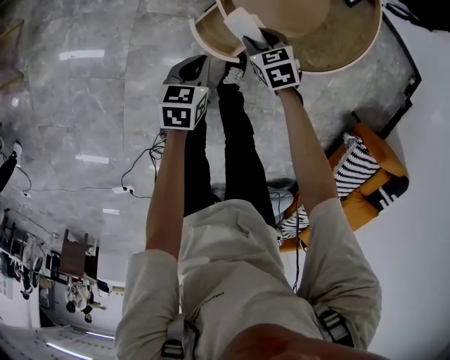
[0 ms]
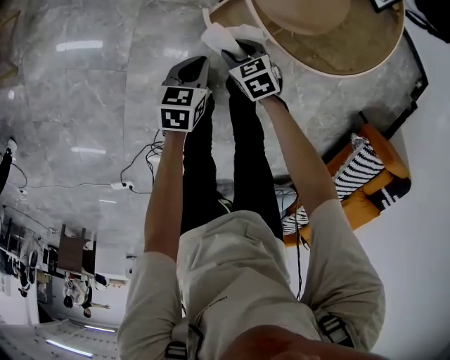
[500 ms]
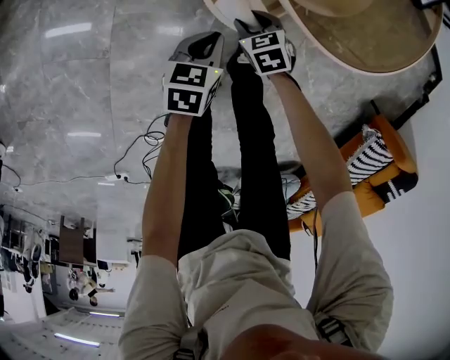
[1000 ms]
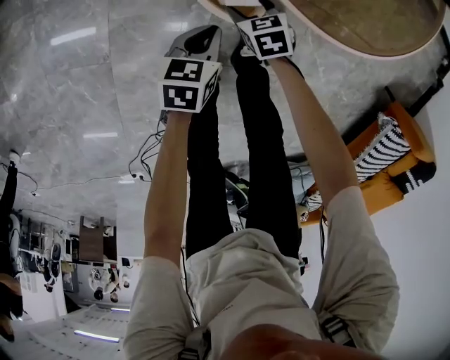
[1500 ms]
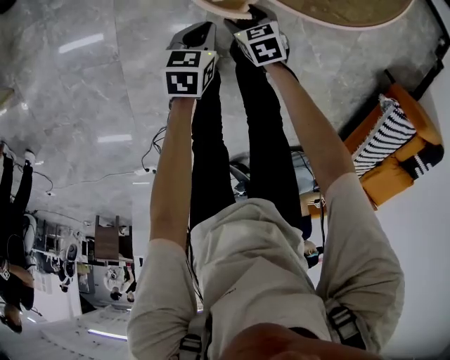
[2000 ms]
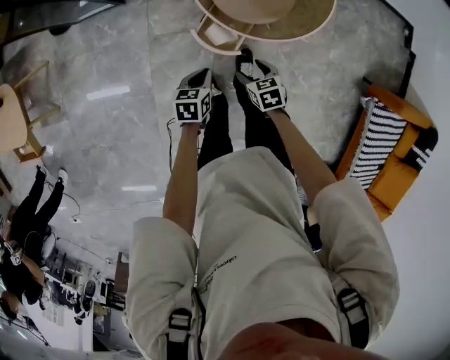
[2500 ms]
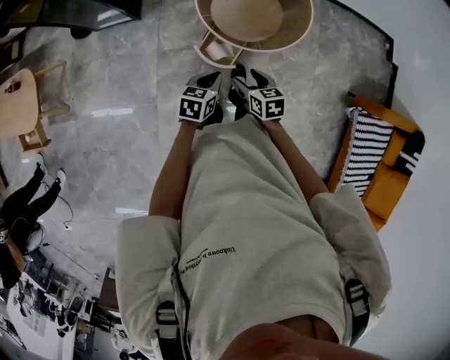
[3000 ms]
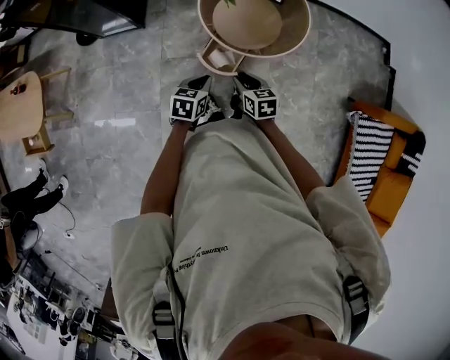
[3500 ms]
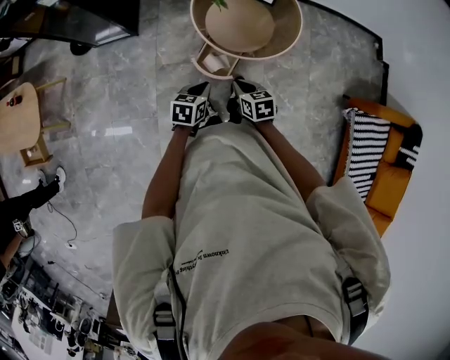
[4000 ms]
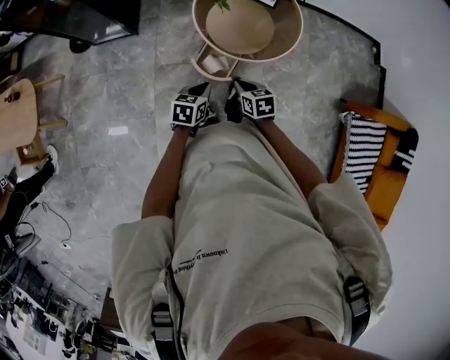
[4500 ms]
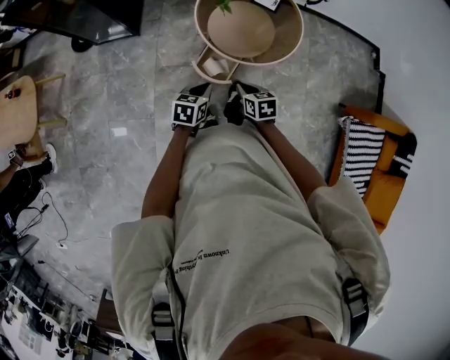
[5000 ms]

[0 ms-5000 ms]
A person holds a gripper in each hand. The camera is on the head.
0 ms to 2500 ms: The left gripper is displaced upward and backward by about 15 cm. Meanwhile the right gripper shifts some 15 cm backward, goes downward and returns, some 25 cm each way, rotates some 20 degrees, and opens up.
2500 ms to 5000 ms: The two grippers go some 20 cm upward. The right gripper closes.

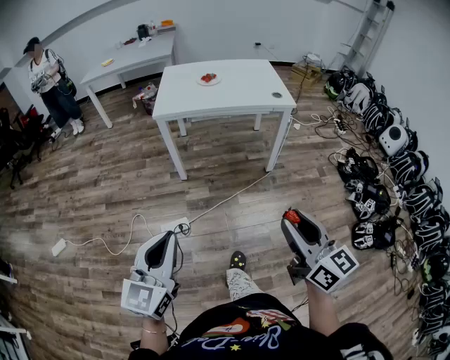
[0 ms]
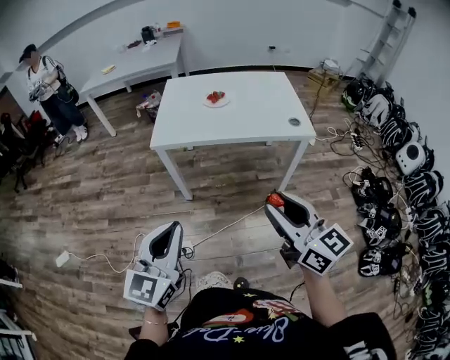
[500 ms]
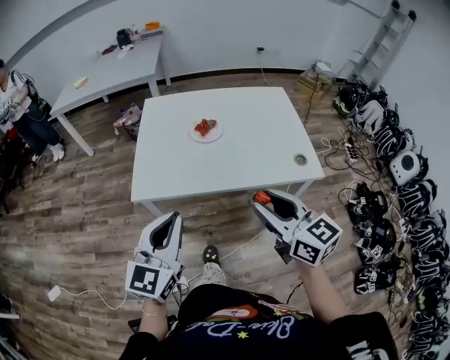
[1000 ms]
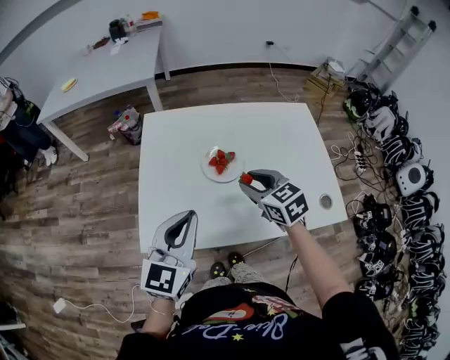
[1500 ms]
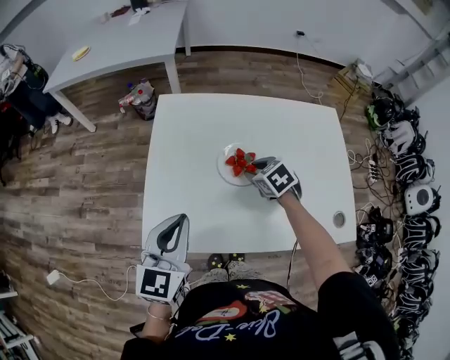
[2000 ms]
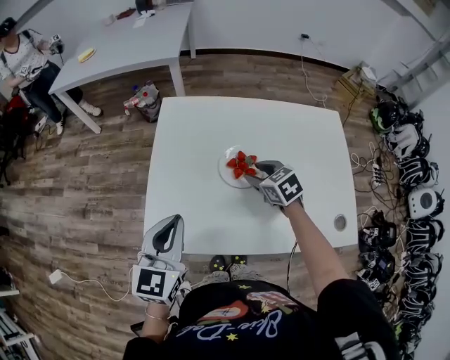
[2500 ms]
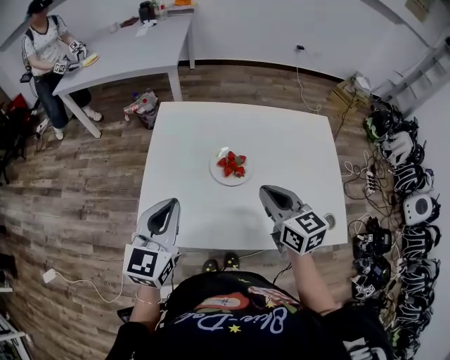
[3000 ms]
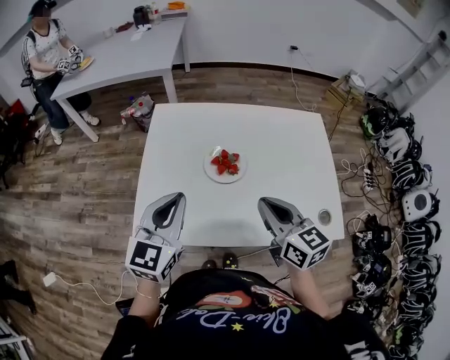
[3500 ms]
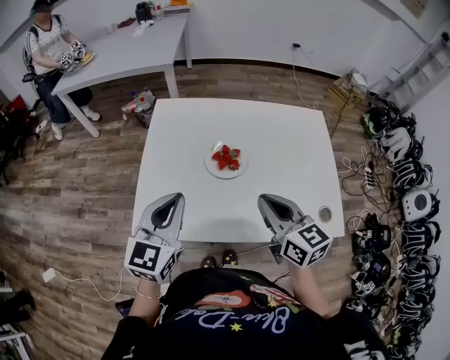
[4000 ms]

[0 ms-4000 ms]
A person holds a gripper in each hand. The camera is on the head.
0 ms to 2000 ms: Both grippers are carried forward, approximately 90 cm. The right gripper tips its fingers downward by some 60 degrees.
2000 ms to 4000 ms: The right gripper heads upward and backward, covering some 25 cm, tips its fingers upward by some 40 degrees, and closes up.

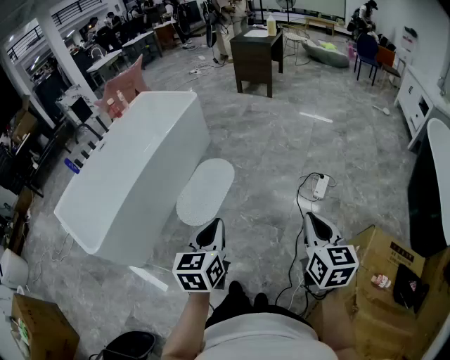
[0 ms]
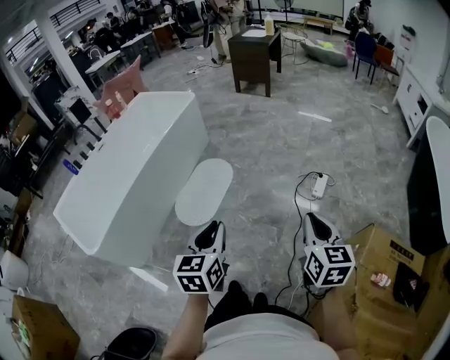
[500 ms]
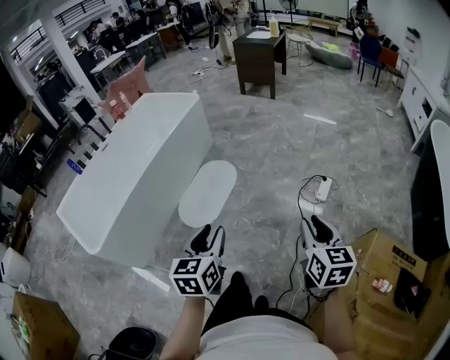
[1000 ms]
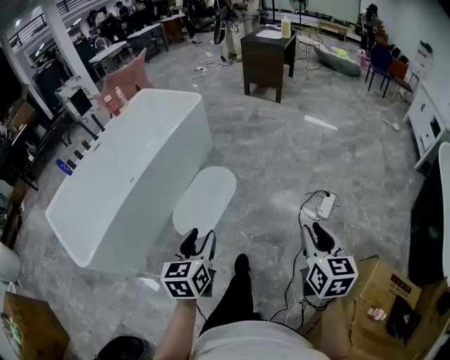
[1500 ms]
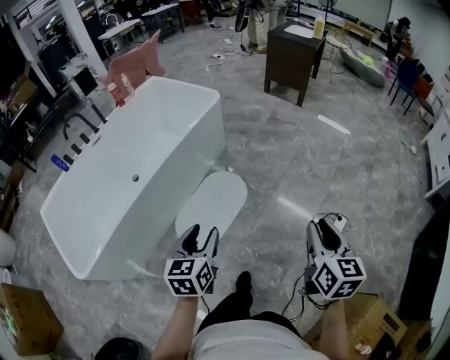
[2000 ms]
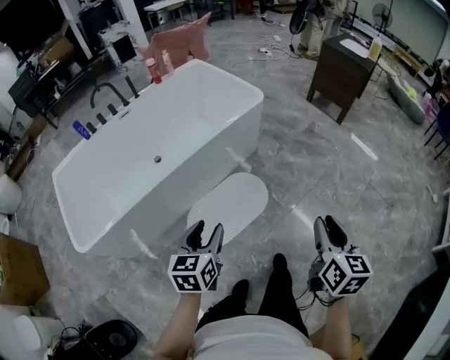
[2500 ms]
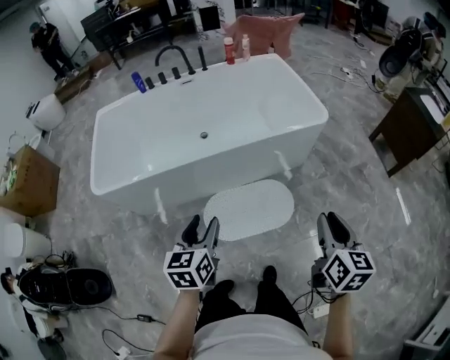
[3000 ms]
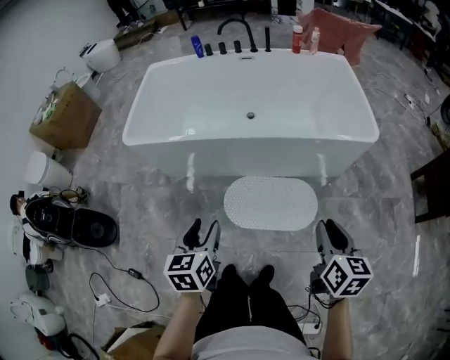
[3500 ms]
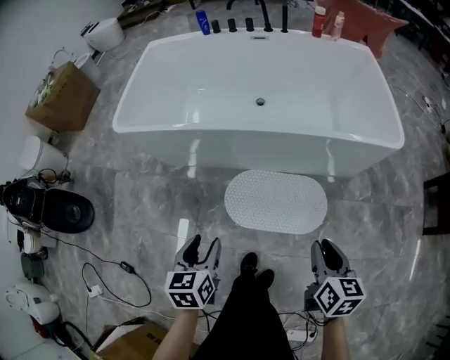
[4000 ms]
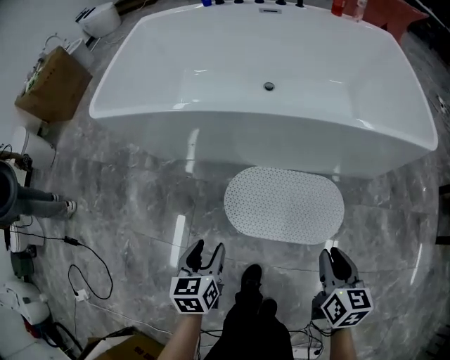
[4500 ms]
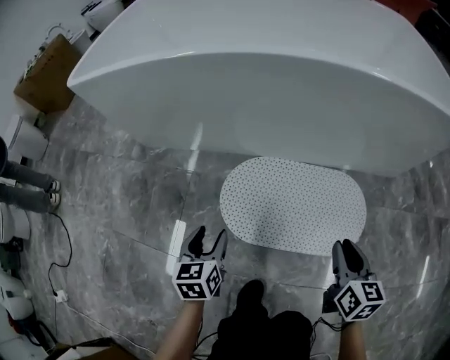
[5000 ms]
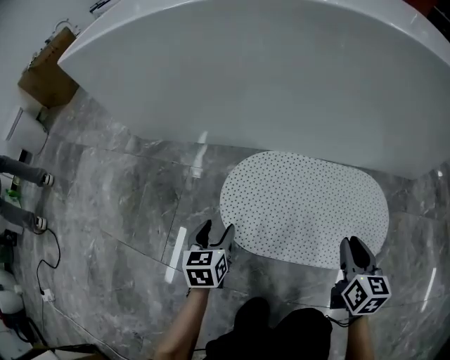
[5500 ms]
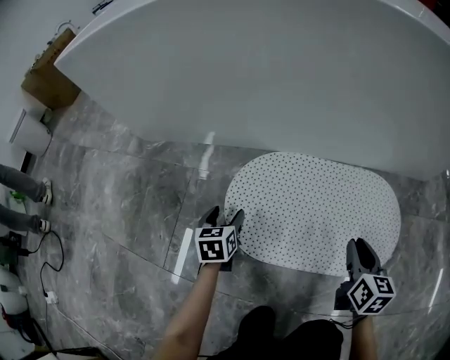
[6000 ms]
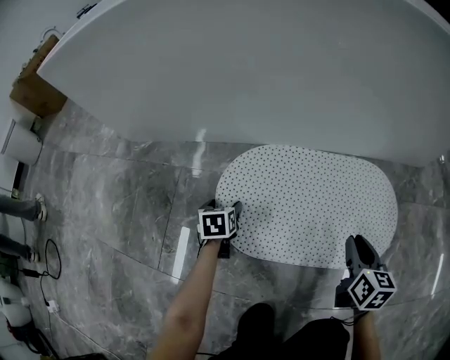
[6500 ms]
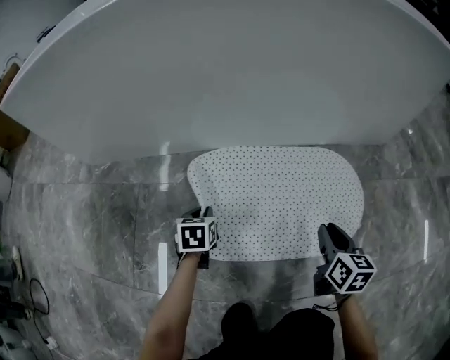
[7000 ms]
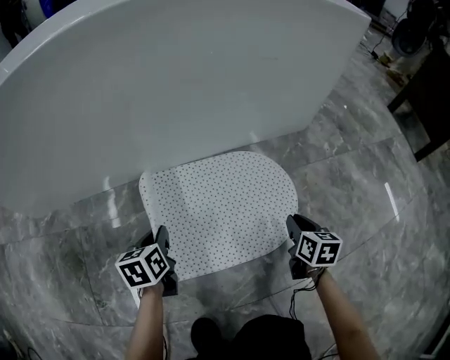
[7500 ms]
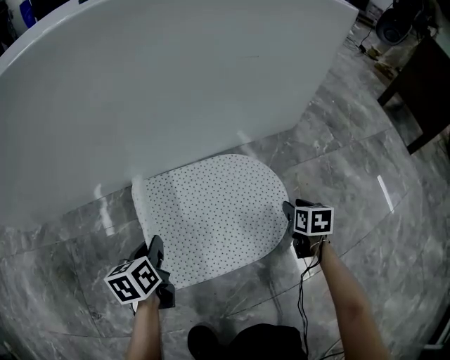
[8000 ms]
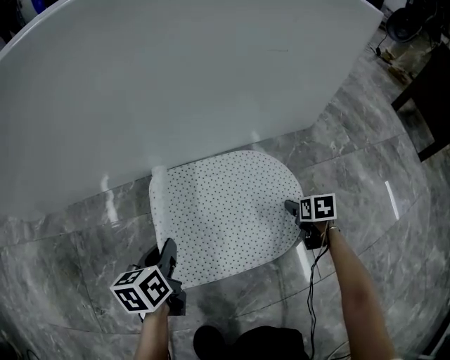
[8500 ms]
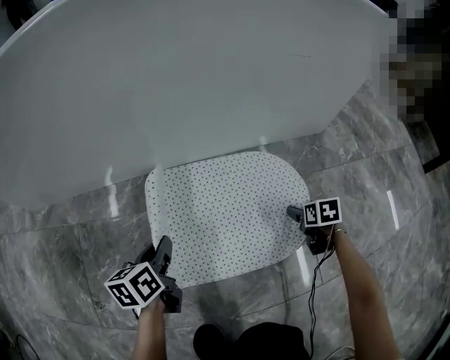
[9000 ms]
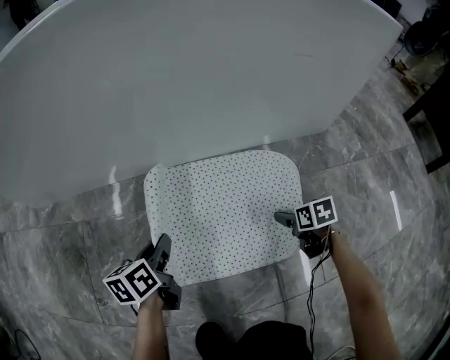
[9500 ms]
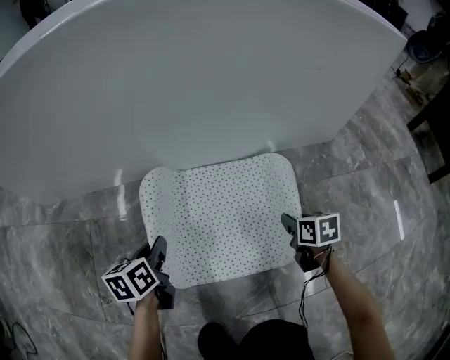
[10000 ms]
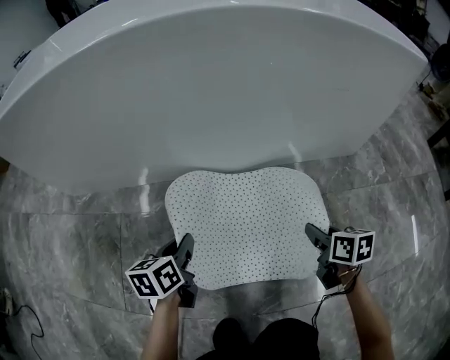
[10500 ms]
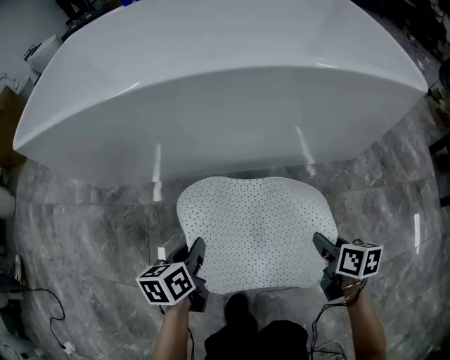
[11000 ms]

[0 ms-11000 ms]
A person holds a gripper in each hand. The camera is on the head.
0 ms to 2000 ms: The left gripper moves forward and to the left, roughly 35 cm, and opens its fingers; the right gripper is displaced forward by roughly 35 cm.
2000 ms to 3500 ms: The right gripper ends up roughly 35 cm from where it was, and changes its angle by roughly 60 degrees; the left gripper ends up some 10 cm from where it was, and turns by roughly 60 degrees.
3500 ms to 5500 ms: The two grippers go roughly 70 cm downward.
5500 ms to 7500 ms: The right gripper travels to the right and downward by approximately 20 cm, and rotates roughly 30 degrees, while the left gripper is displaced to the right and forward by approximately 20 cm, rotates approximately 20 degrees, and closes its fingers.
7500 ms to 9000 ms: The right gripper heads downward and forward, covering some 10 cm, swivels about 30 degrees, and opens up.
9000 ms to 11000 ms: The right gripper shifts some 35 cm upward and to the left, swivels approximately 30 degrees, and closes its fingers, while the left gripper is displaced upward by some 20 cm.

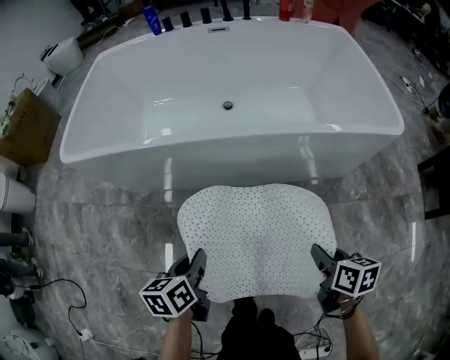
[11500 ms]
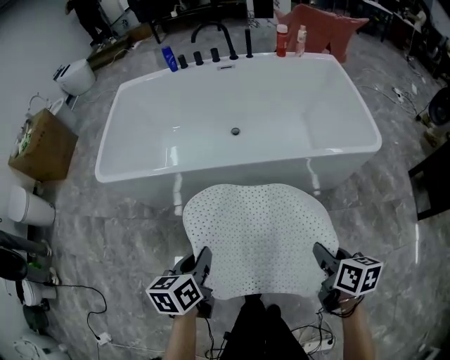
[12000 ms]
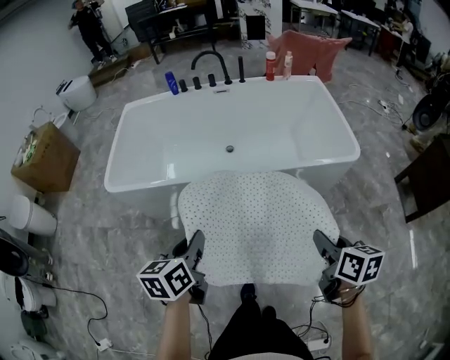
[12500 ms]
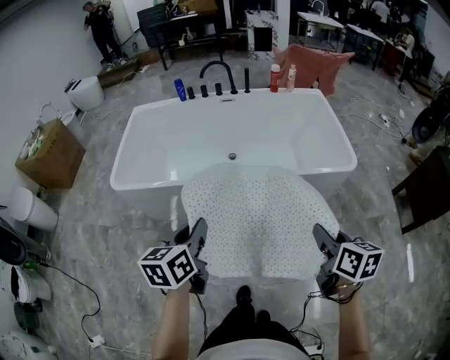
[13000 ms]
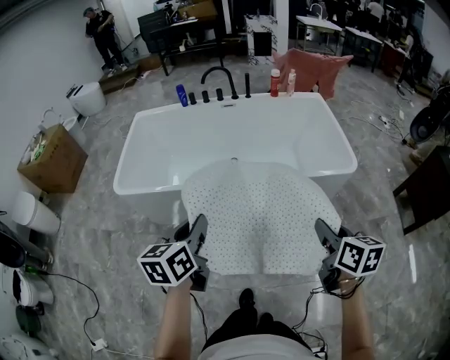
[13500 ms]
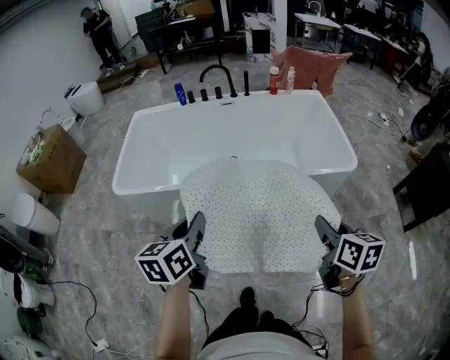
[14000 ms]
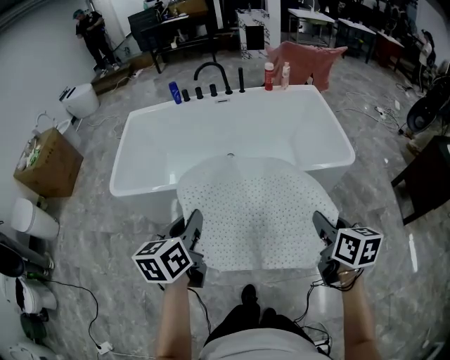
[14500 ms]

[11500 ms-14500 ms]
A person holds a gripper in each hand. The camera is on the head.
11500 ms to 13000 ms: The grippers both shift upward by roughly 35 cm. The left gripper turns by approximately 20 degrees; the right gripper changes its angle by about 20 degrees.
13000 ms to 14500 ms: The grippers move only a little.

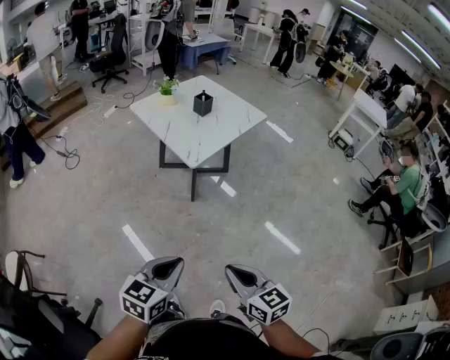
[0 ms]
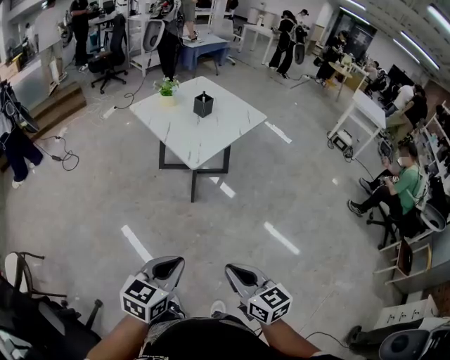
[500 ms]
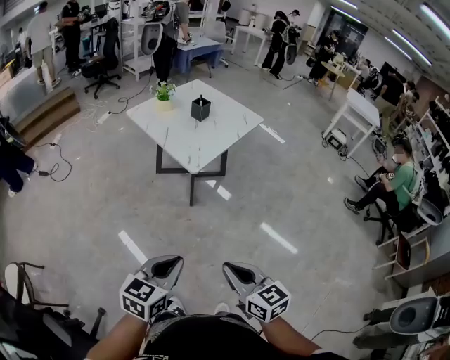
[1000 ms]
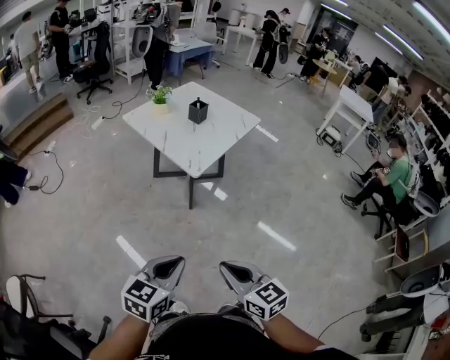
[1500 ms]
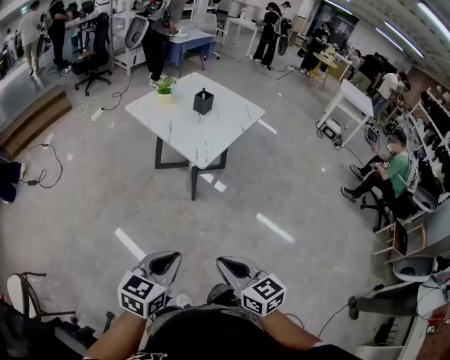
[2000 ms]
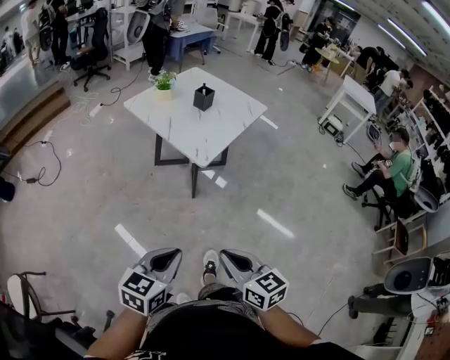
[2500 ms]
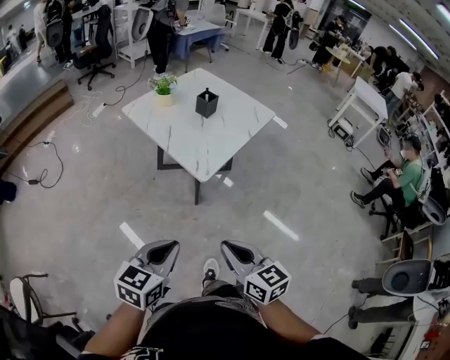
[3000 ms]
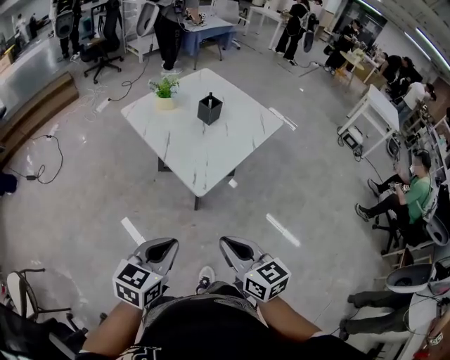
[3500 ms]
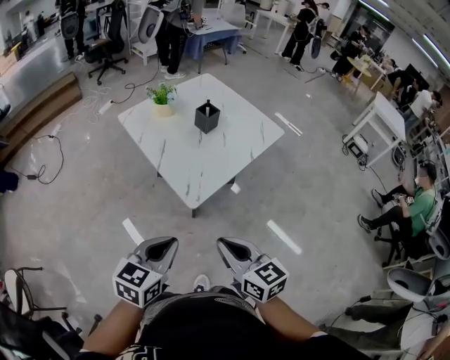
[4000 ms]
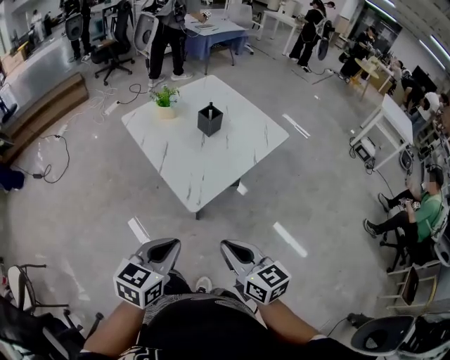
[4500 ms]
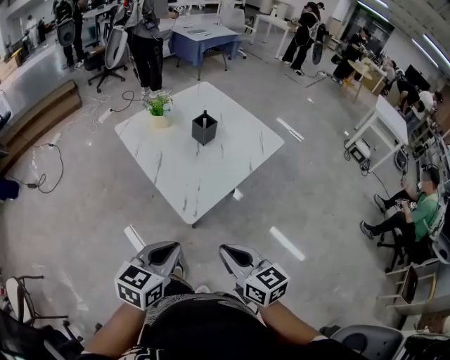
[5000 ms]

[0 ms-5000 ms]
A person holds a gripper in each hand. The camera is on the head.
0 ms to 2500 ms: Both grippers travel together to the left and forward, about 15 cm.
2500 ms to 5000 ms: The grippers both shift forward by approximately 30 cm.
